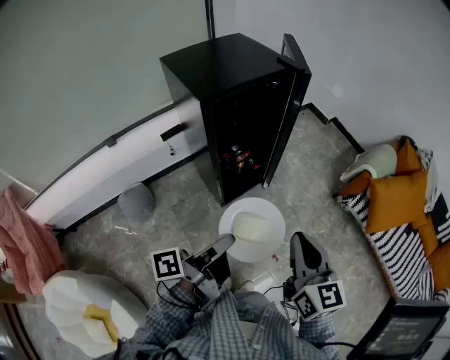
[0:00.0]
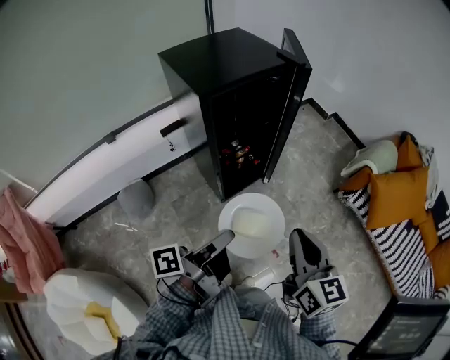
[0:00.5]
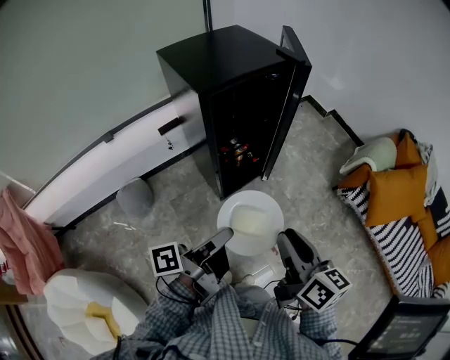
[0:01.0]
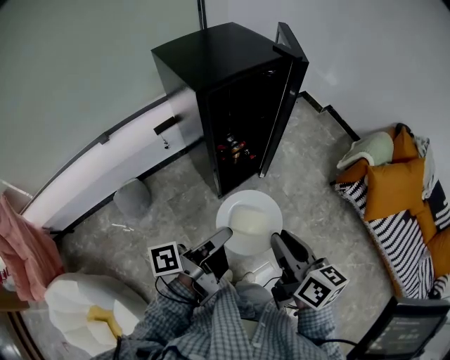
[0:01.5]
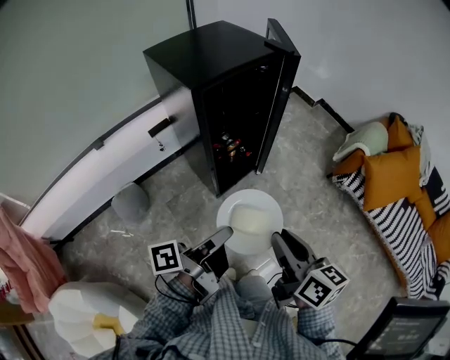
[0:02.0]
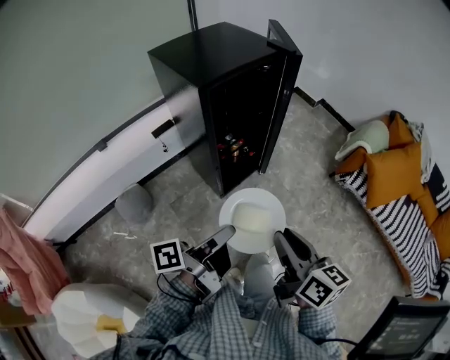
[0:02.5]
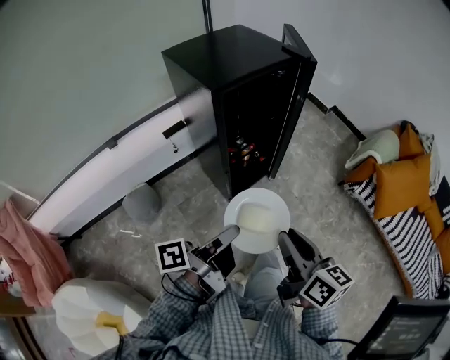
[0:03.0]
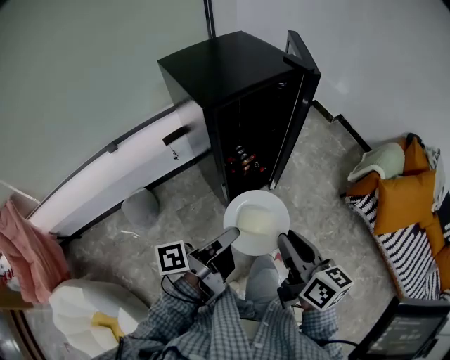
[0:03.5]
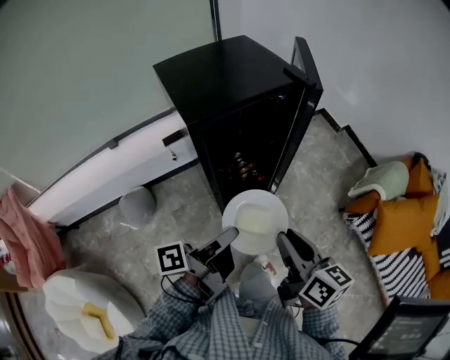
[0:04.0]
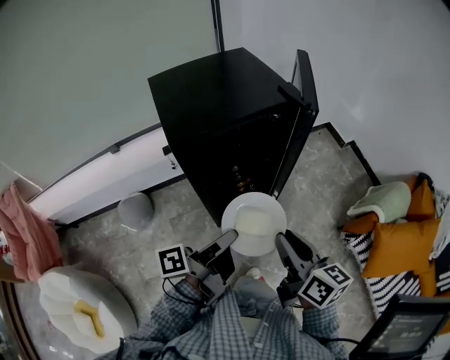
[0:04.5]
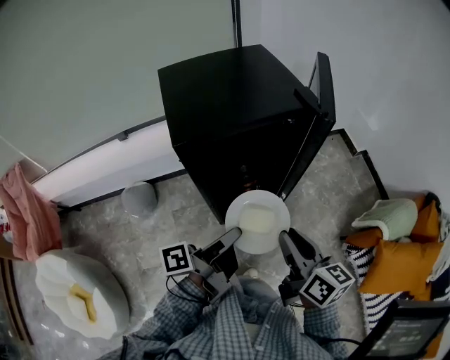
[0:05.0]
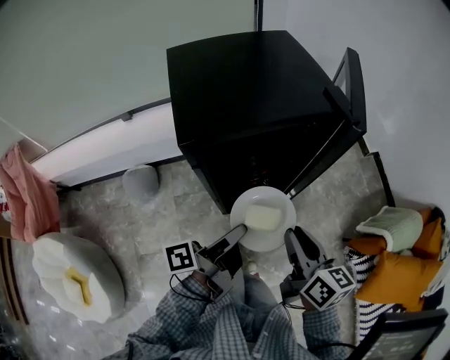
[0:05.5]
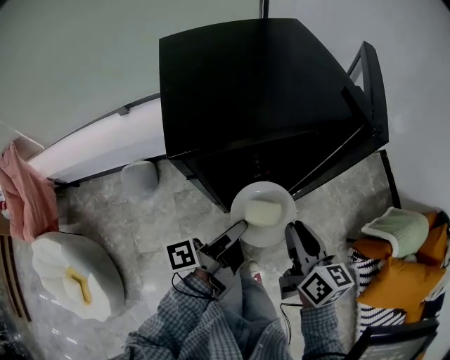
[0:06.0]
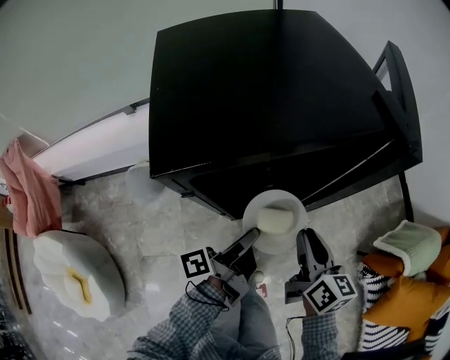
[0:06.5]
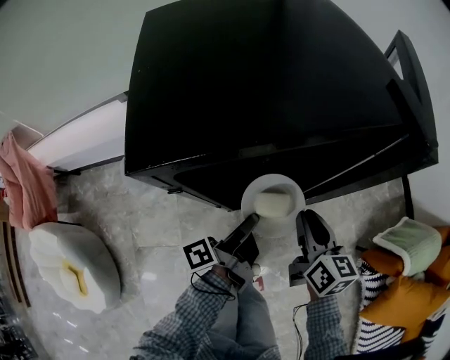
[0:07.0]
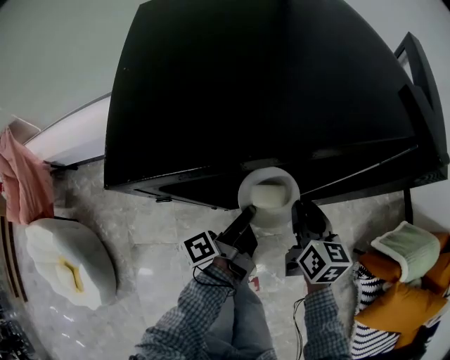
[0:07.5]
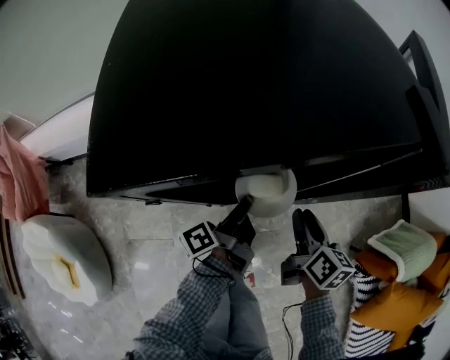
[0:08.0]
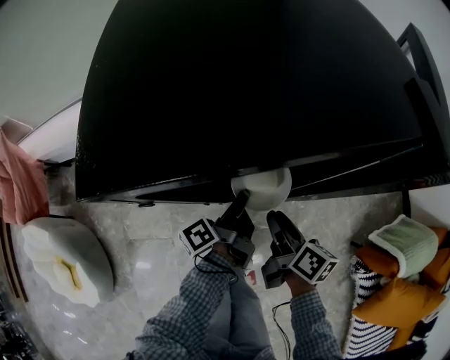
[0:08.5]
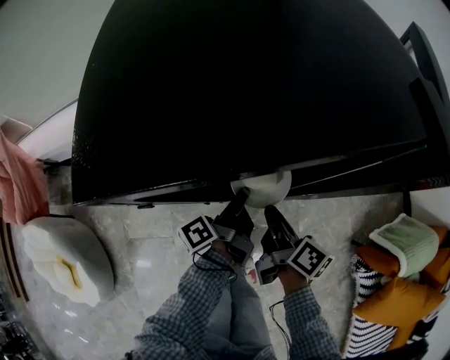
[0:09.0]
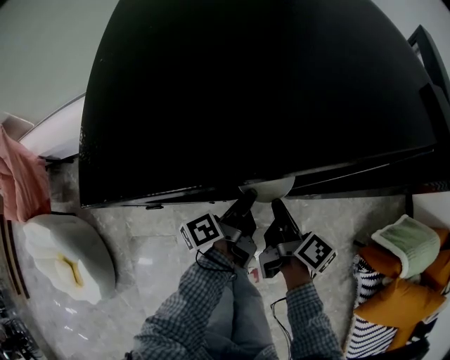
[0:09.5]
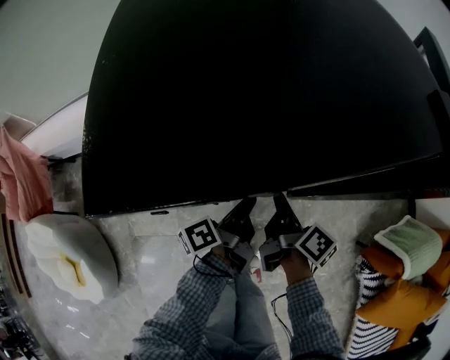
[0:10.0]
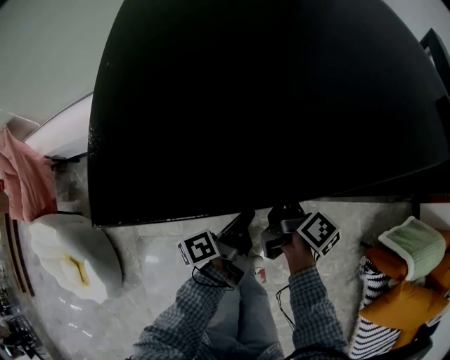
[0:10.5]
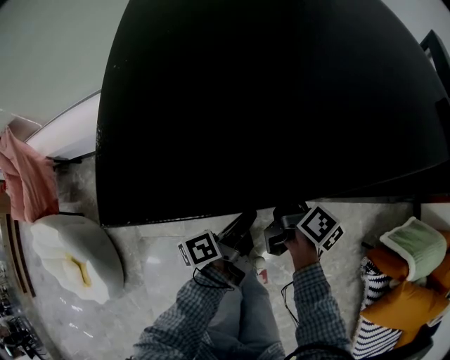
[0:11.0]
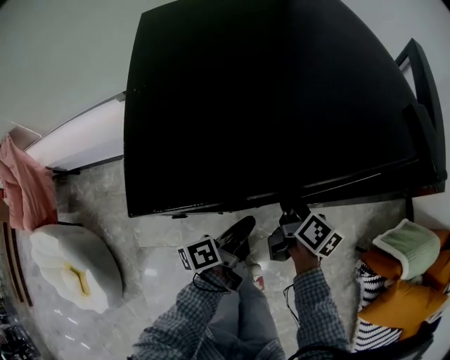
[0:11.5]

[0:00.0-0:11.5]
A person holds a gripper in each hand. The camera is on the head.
0:00.0 to 0:02.0: The right gripper swivels about 30 degrees.
0:02.0 to 0:04.0: The right gripper shifts by approximately 15 cm.
0:04.0 to 0:06.0: The right gripper ends up roughly 20 cm from where it was.
0:06.0 to 0:07.5: The right gripper goes roughly 15 cm downward.
0:07.5 to 0:09.5: The right gripper shifts by about 5 cm, and twists about 40 degrees clockwise, seen from behind.
0:09.5 to 0:11.5: The right gripper ends up approximately 5 cm from where it was, and opens its fingers.

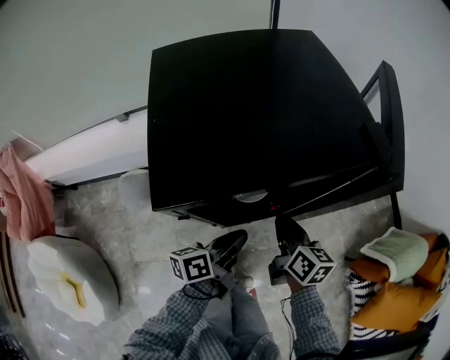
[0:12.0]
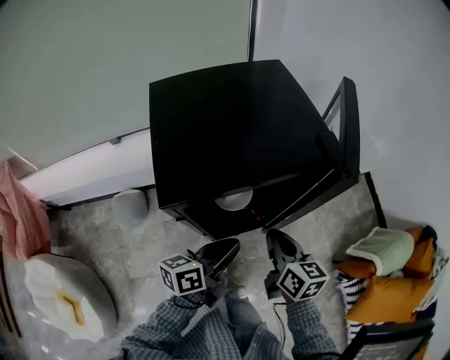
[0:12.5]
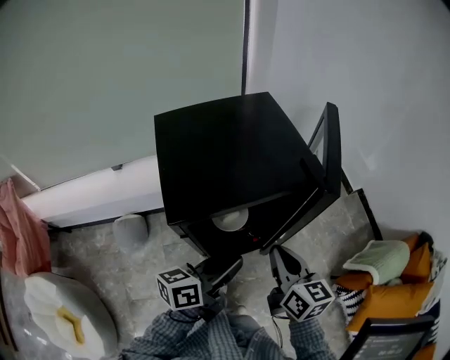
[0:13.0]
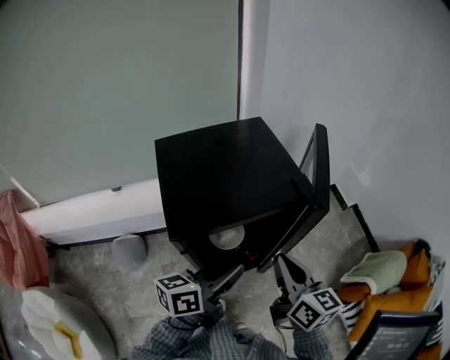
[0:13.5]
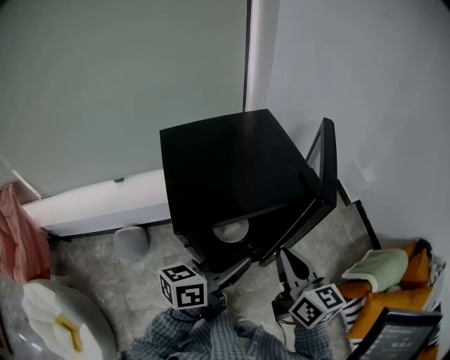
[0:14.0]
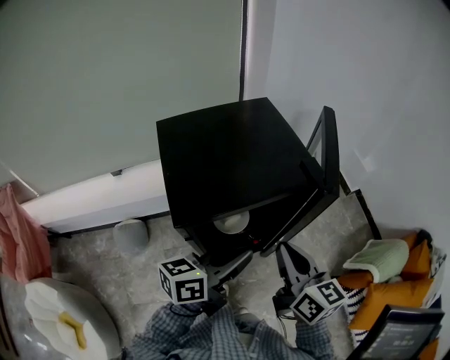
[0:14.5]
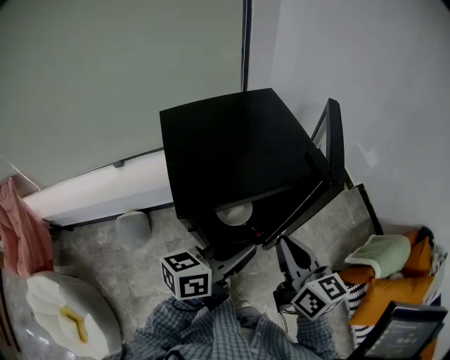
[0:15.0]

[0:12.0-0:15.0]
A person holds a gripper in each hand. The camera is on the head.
0:12.0 to 0:13.5: The right gripper shifts some 20 cm upward, and changes its angle by about 20 degrees.

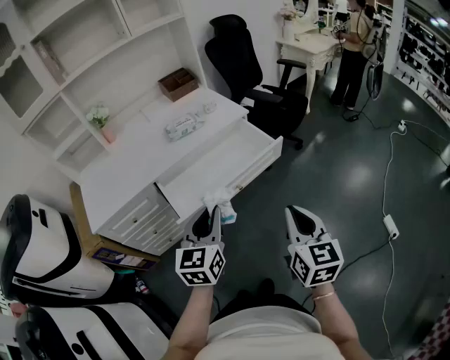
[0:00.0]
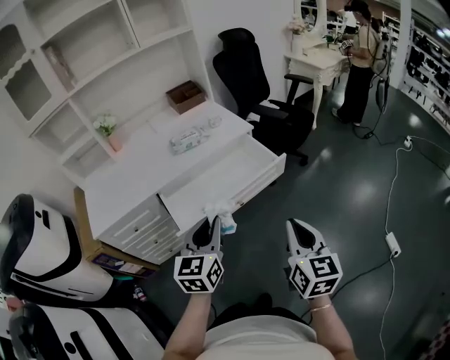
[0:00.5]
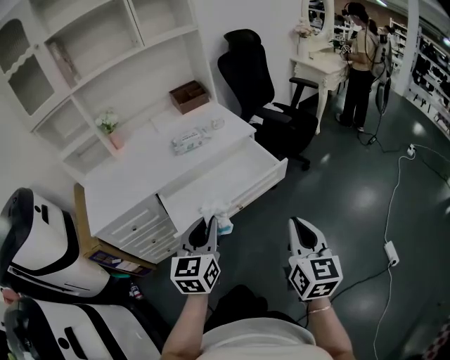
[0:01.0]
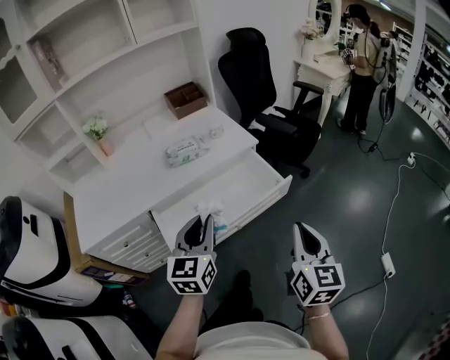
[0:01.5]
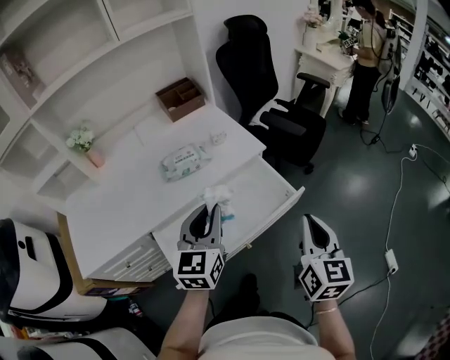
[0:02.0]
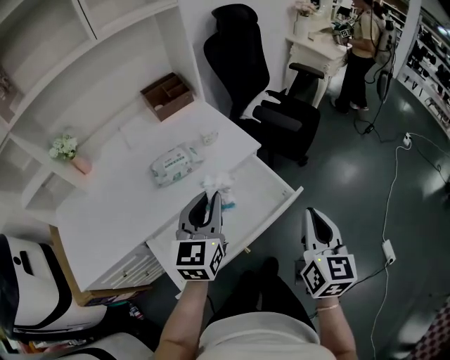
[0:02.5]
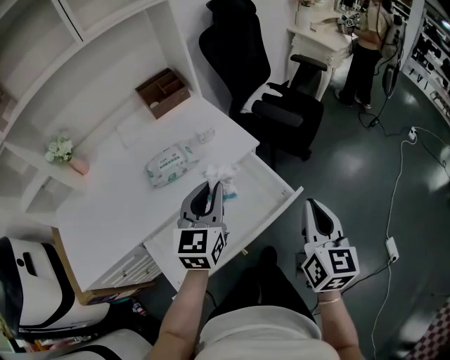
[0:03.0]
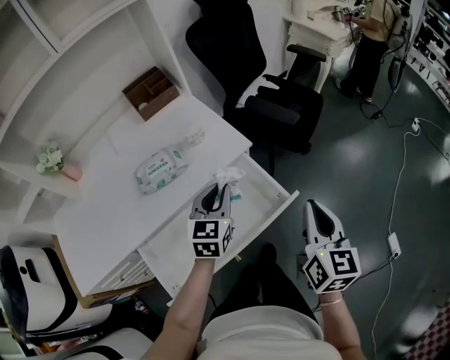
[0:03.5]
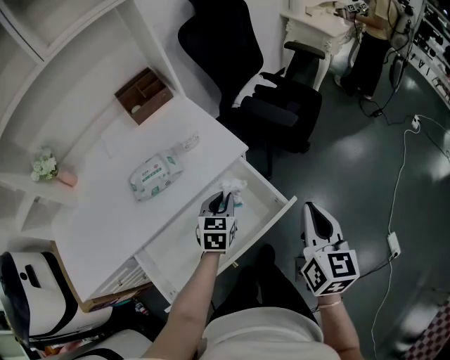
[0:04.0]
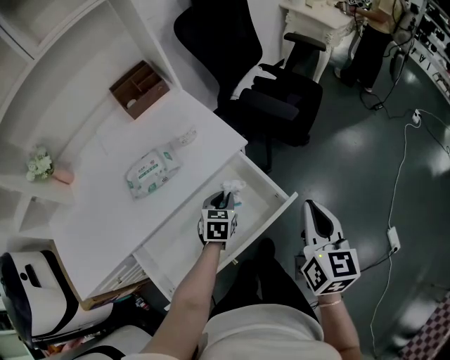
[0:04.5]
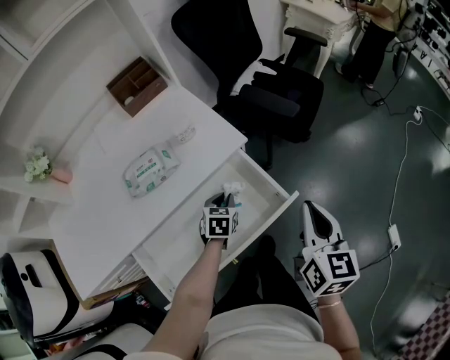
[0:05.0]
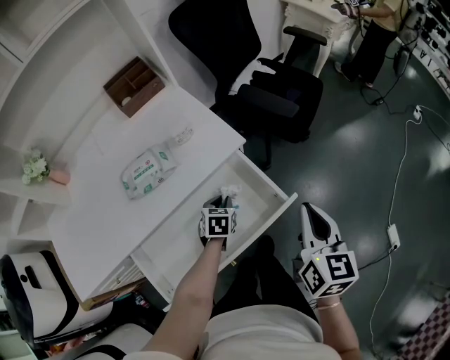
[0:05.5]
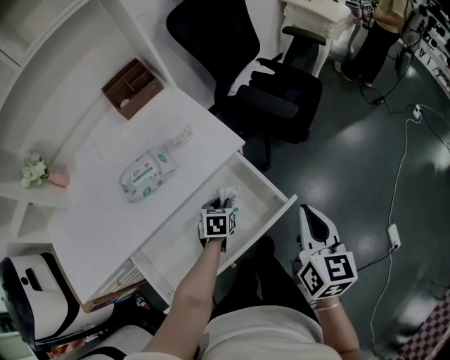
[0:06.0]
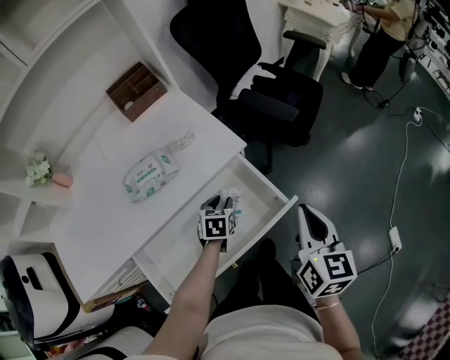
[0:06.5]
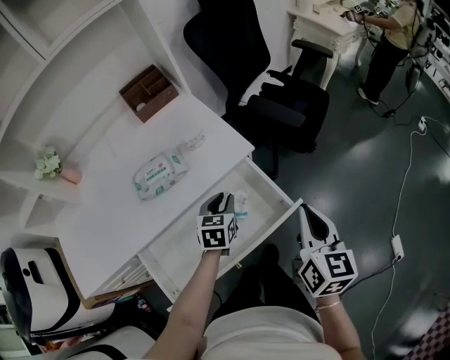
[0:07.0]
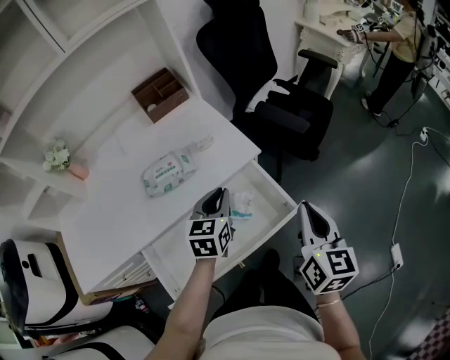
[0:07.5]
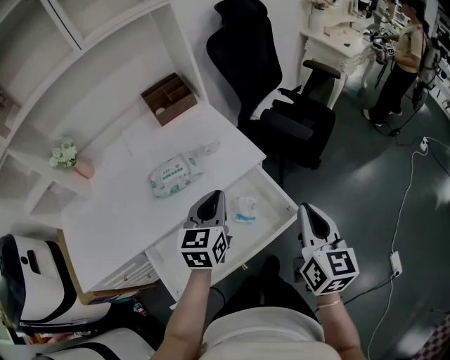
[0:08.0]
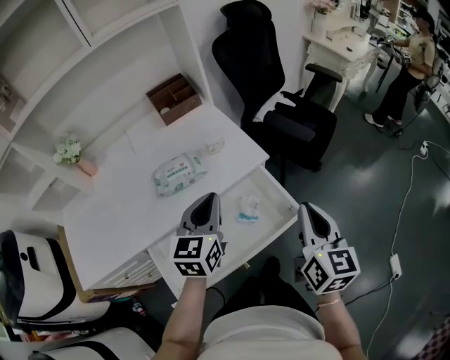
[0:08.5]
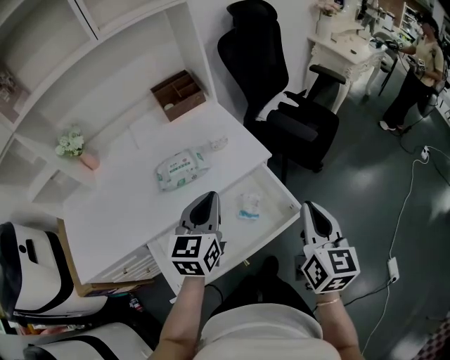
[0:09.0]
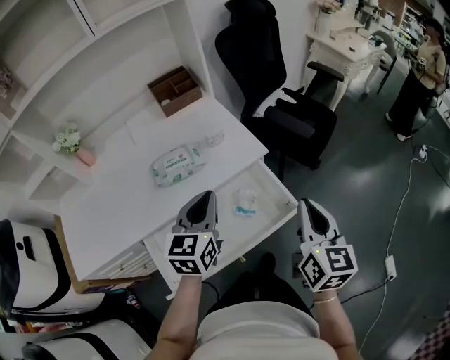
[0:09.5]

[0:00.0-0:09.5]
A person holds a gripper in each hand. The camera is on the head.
0:00.0 to 0:02.0: Both grippers move forward, some 25 cm.
0:02.0 to 0:04.0: The right gripper heads forward and to the right, covering some 15 cm. Meanwhile the left gripper moves downward and forward, roughly 30 cm, and turns by some 30 degrees.
0:04.0 to 0:05.5: The left gripper moves downward, roughly 10 cm.
0:05.5 to 0:07.5: The left gripper moves upward, approximately 20 cm, and turns by about 30 degrees.
0:07.5 to 0:09.5: The left gripper shifts about 10 cm upward and backward.

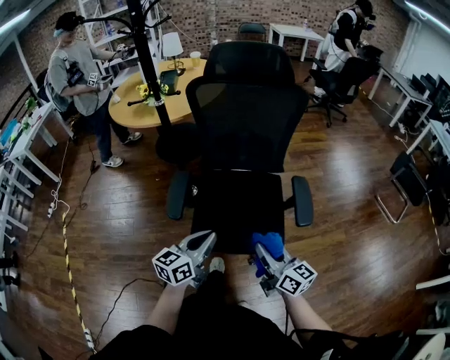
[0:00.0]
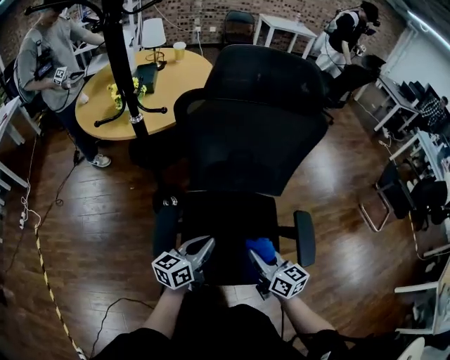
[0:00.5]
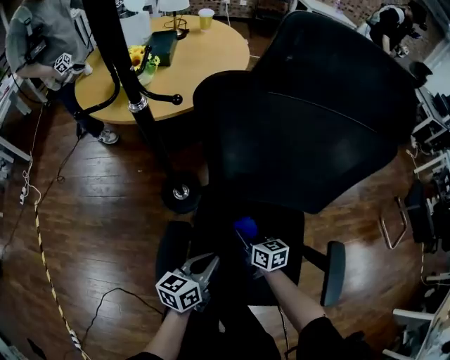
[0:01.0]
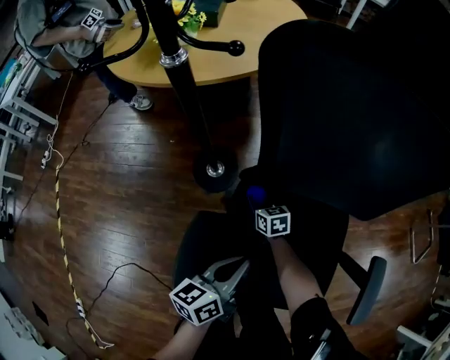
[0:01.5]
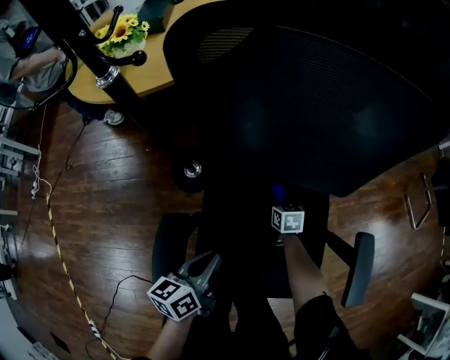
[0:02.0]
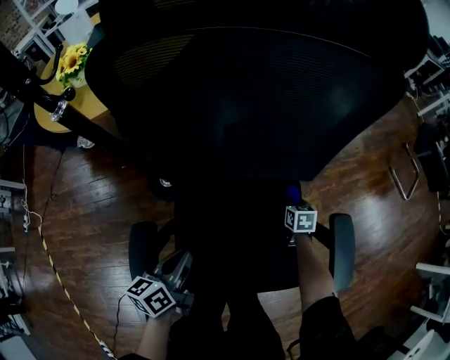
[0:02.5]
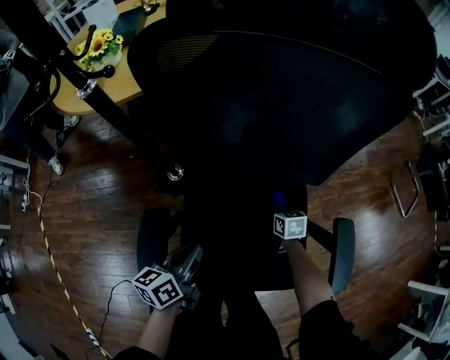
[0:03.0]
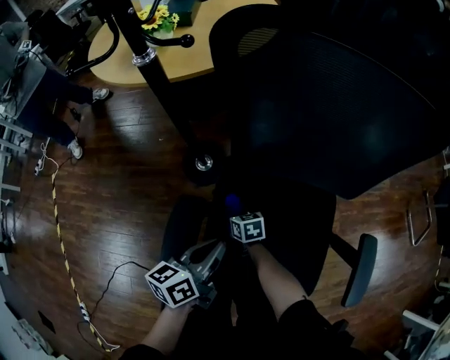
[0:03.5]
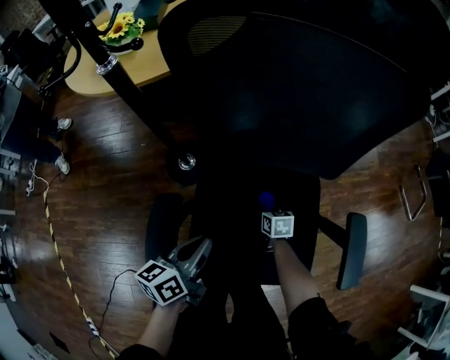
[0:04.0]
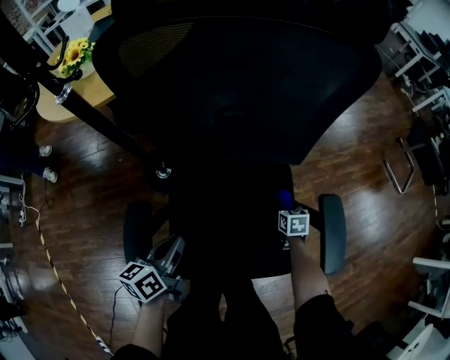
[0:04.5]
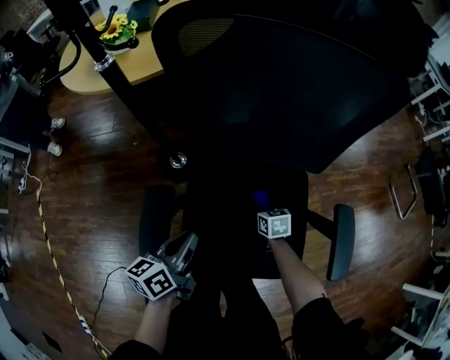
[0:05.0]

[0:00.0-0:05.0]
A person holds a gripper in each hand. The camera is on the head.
0:00.0 to 0:02.5: The right gripper heads forward and downward, covering some 60 cm, and angles its fingers downward, by some 50 degrees; the left gripper shifts some 30 cm forward and downward, and turns by about 30 degrees.
